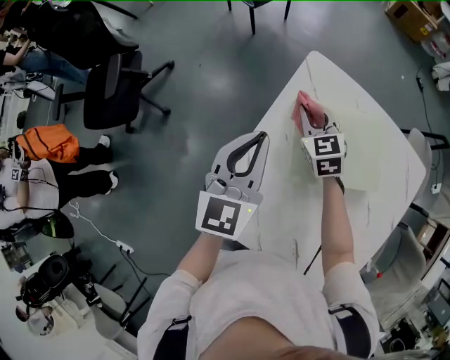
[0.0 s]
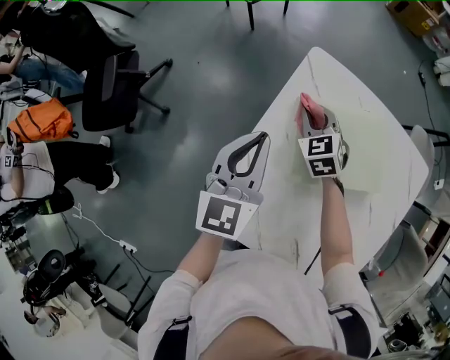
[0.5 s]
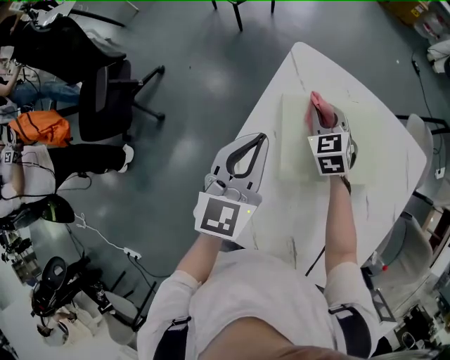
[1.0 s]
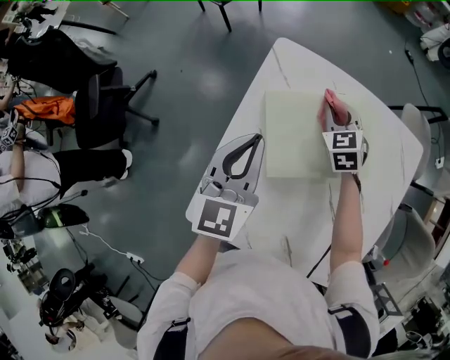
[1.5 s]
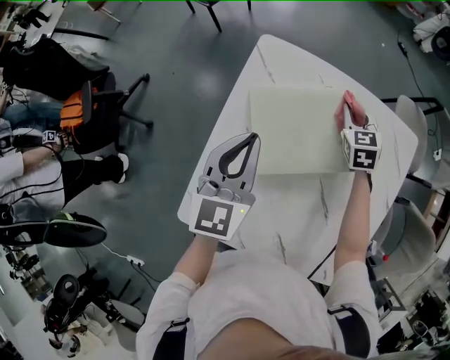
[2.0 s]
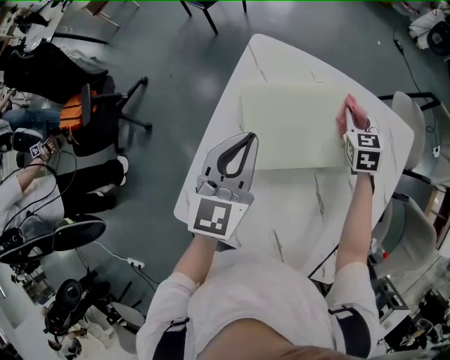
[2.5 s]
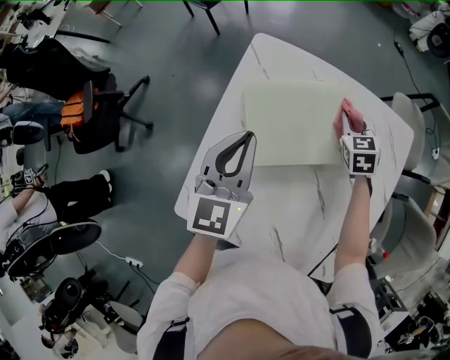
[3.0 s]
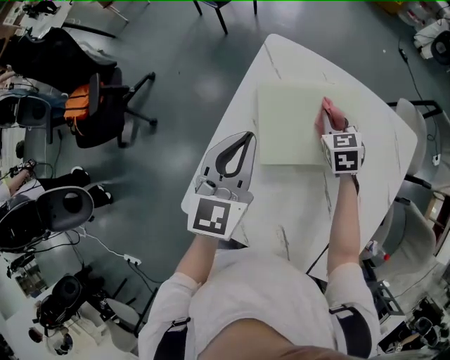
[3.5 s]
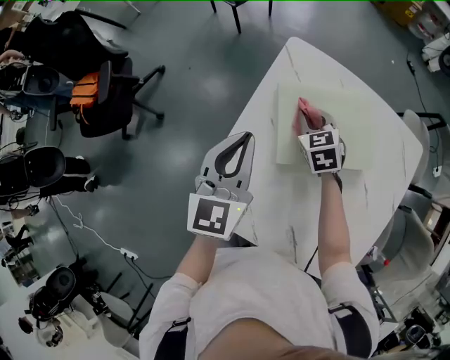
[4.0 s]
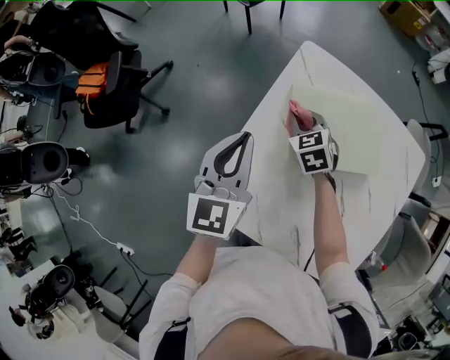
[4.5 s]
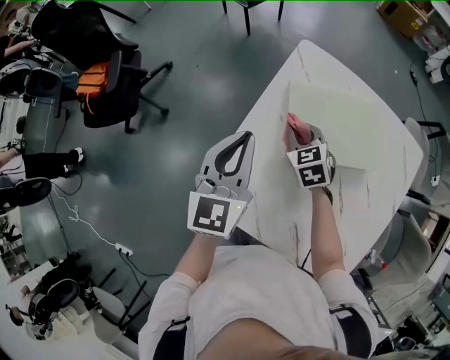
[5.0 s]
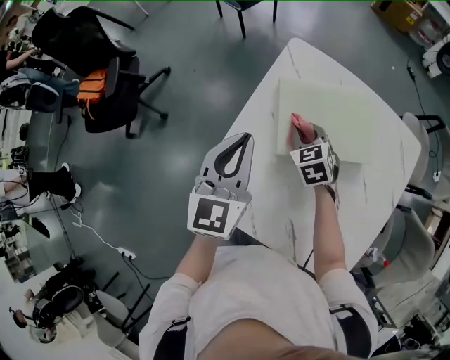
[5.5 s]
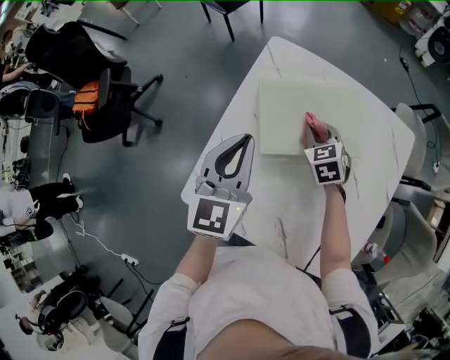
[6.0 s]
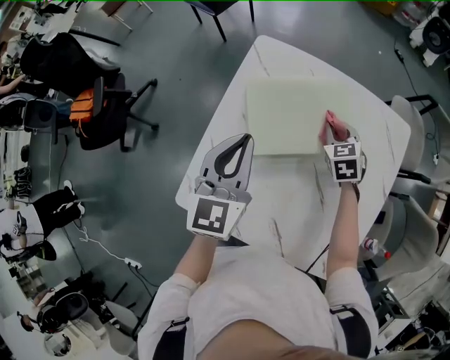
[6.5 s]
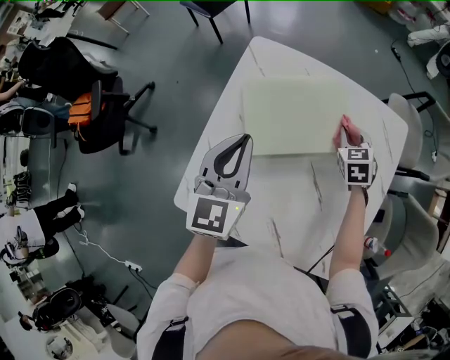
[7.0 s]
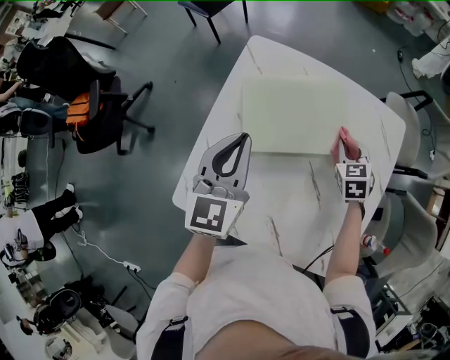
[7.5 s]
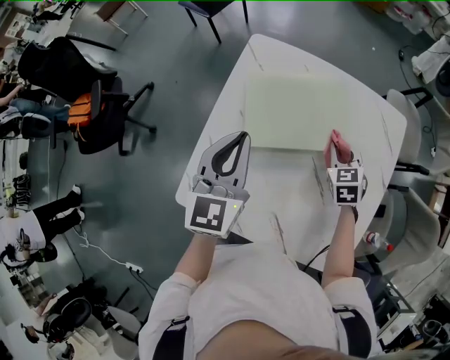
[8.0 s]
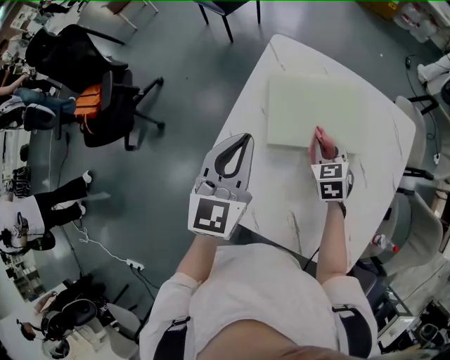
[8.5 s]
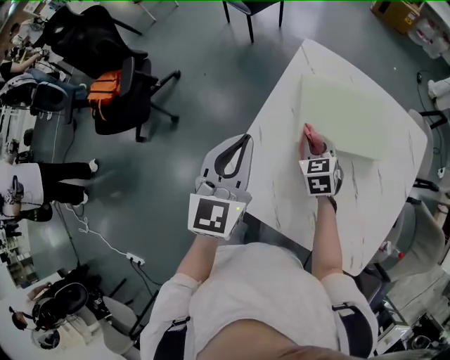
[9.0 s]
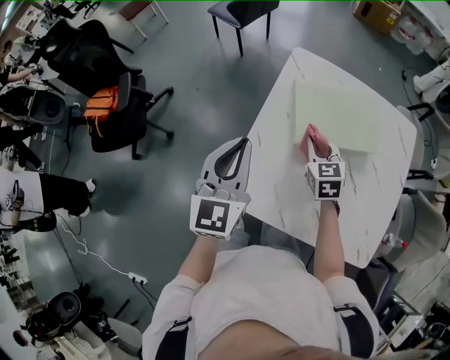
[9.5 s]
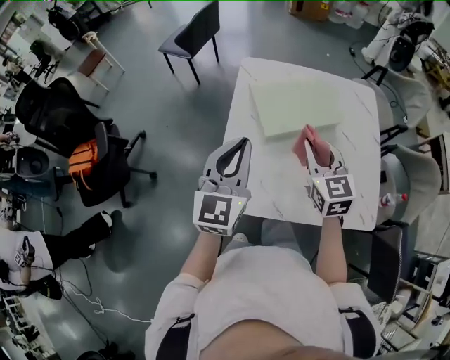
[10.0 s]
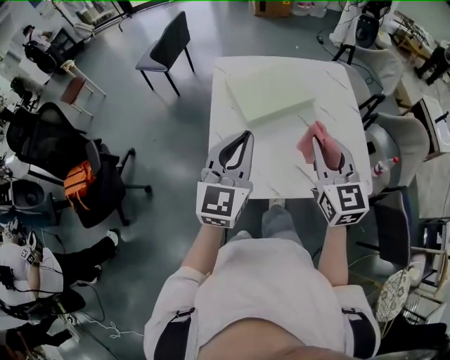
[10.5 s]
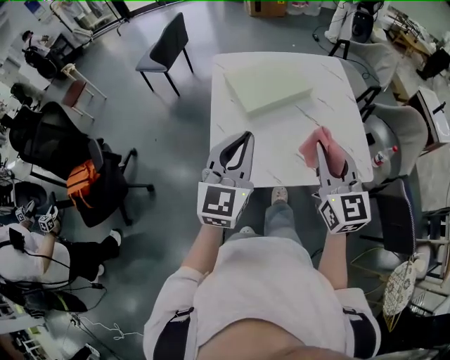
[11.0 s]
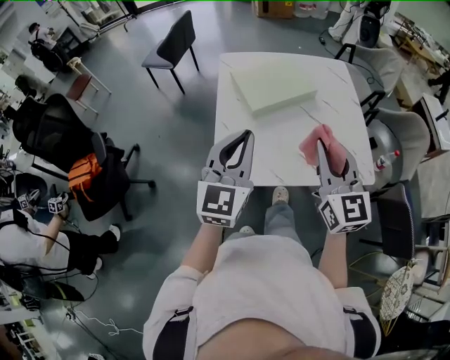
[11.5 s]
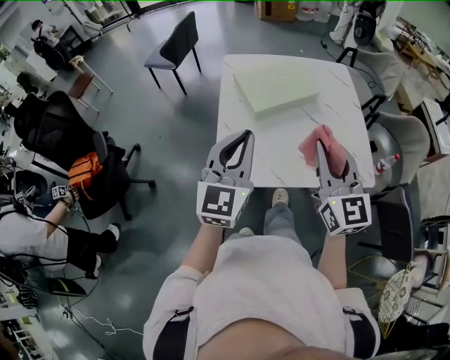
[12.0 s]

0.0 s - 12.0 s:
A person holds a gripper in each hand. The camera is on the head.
0.0 s - 2.0 s: The right gripper travels to the right by approximately 25 cm, and rotates about 20 degrees. Meanwhile the left gripper moves to the right, about 10 cm.
2.0 s - 4.0 s: The right gripper shifts approximately 20 cm to the left and backward. Meanwhile the left gripper moves to the left and backward, approximately 10 cm.
4.0 s - 6.0 s: The right gripper travels to the right and backward by some 10 cm. The left gripper goes roughly 5 cm to the right.
6.0 s - 8.0 s: The right gripper goes some 15 cm to the right and backward.
8.0 s - 10.0 s: The right gripper travels to the left, upward and backward by roughly 30 cm, and turns by approximately 30 degrees; the left gripper moves backward, to the left and upward, some 15 cm.
10.0 s - 12.0 s: The left gripper travels backward by roughly 10 cm. The right gripper heads backward and upward, covering about 20 cm, and changes its angle by some 20 degrees.

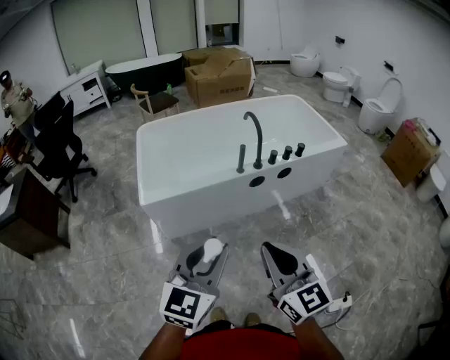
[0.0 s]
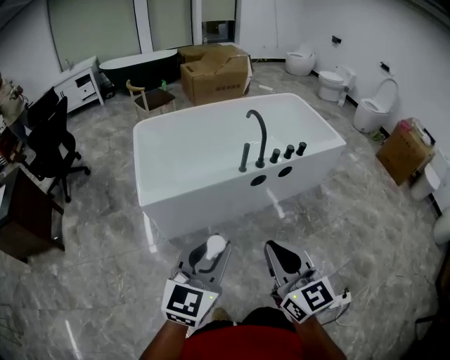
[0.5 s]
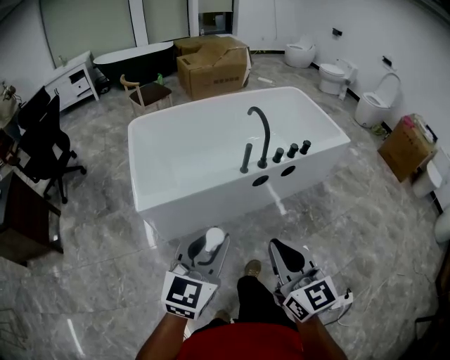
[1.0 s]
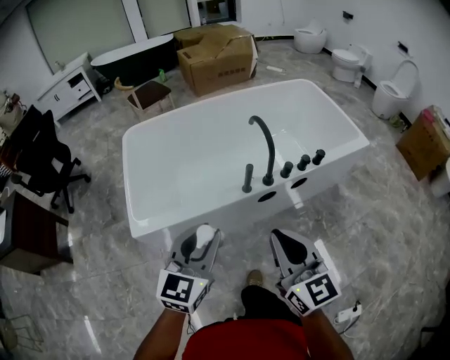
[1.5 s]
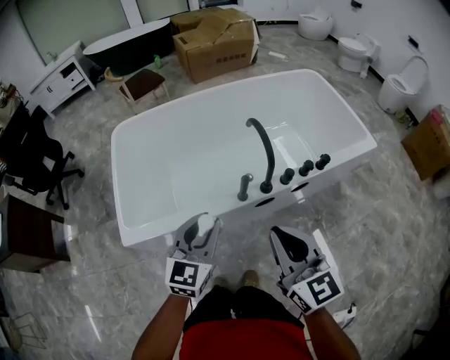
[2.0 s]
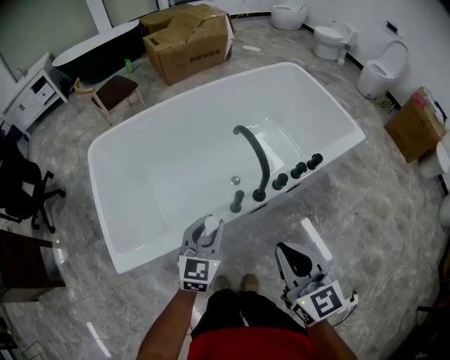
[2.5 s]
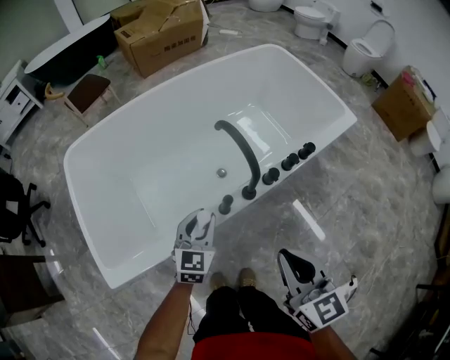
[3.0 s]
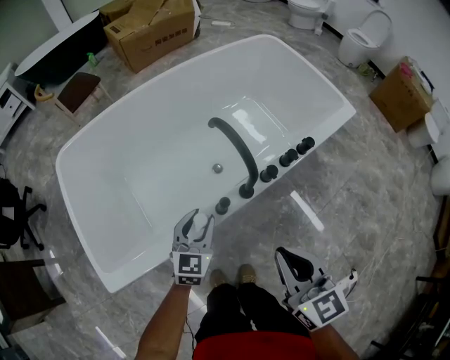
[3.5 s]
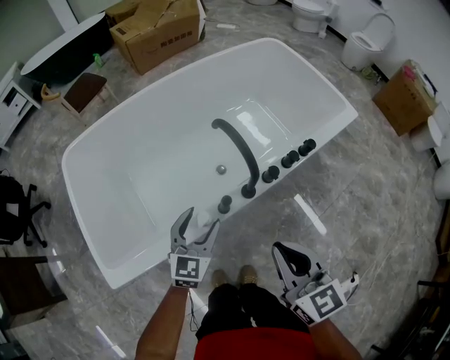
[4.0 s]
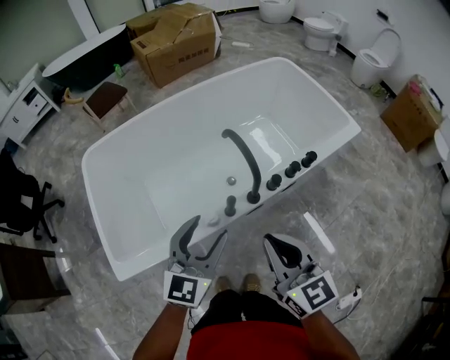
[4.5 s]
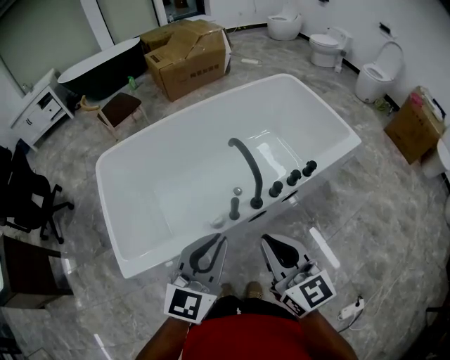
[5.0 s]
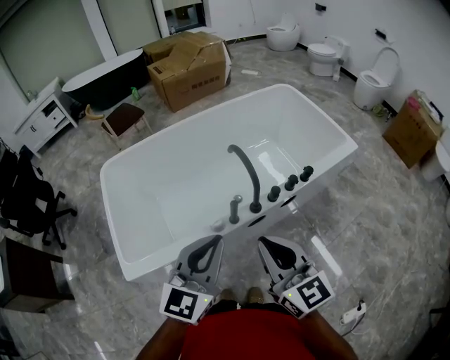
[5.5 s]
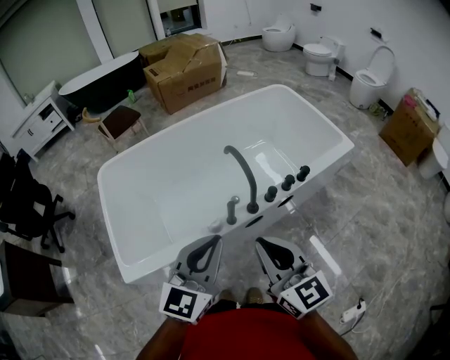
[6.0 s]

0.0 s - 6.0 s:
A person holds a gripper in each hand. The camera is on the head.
0.0 s - 2.0 s: Both grippers move forward, approximately 40 cm.
2.0 s - 4.0 s: The left gripper moves downward and forward, some 20 cm, and opens up; the right gripper moves downward and forward, about 10 cm.
4.0 s - 6.0 s: The left gripper travels upward and backward by approximately 30 cm, and closes; the right gripper shifts some 10 cm upward and backward.

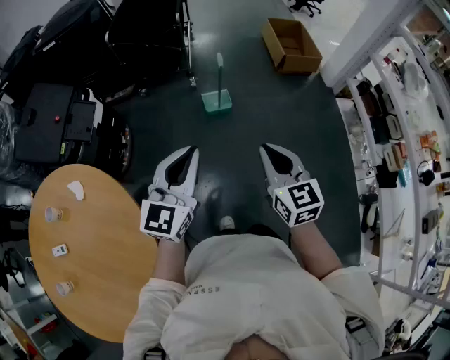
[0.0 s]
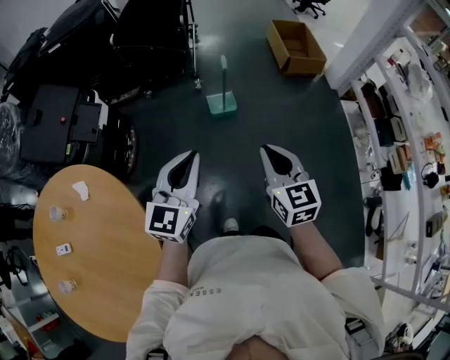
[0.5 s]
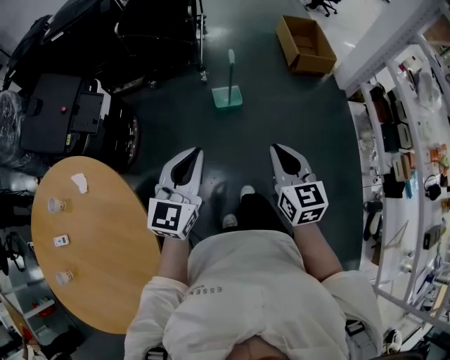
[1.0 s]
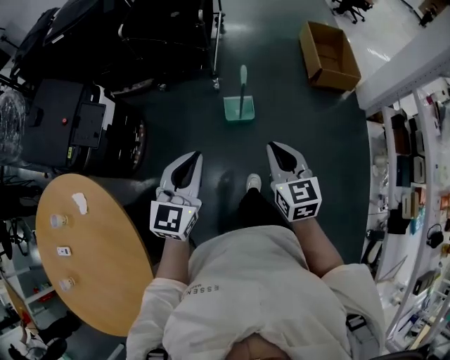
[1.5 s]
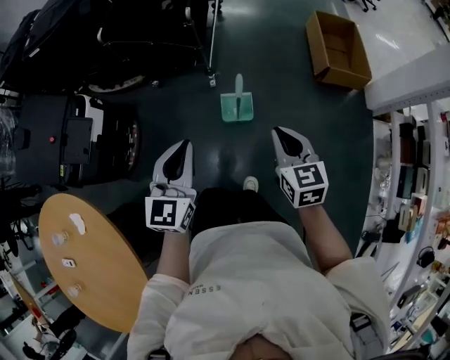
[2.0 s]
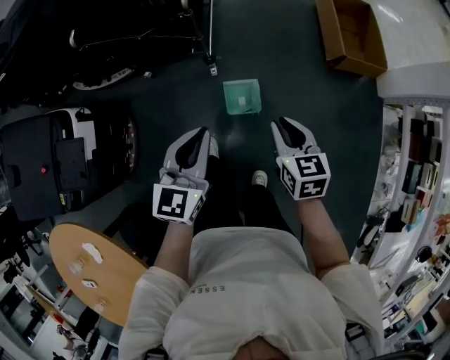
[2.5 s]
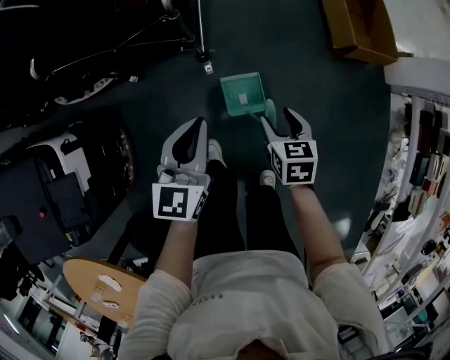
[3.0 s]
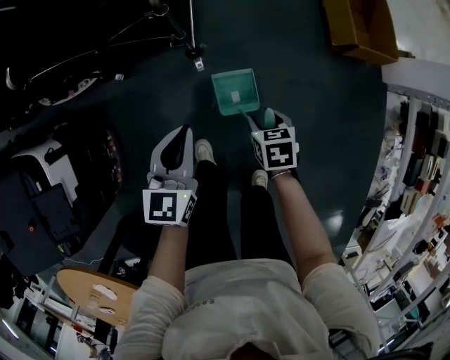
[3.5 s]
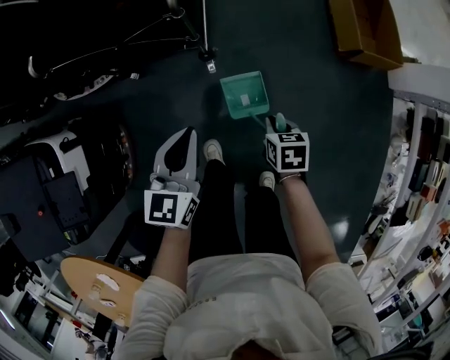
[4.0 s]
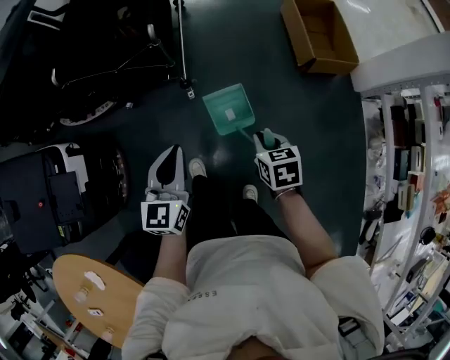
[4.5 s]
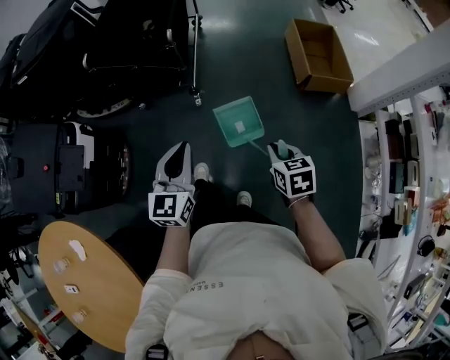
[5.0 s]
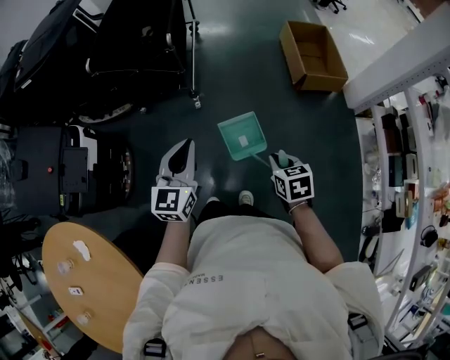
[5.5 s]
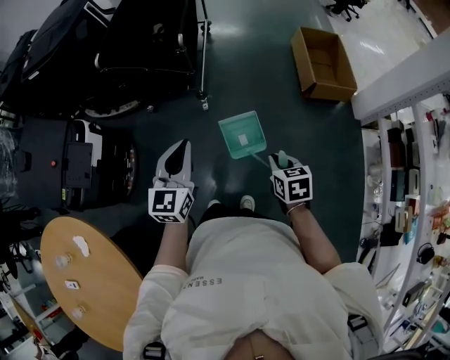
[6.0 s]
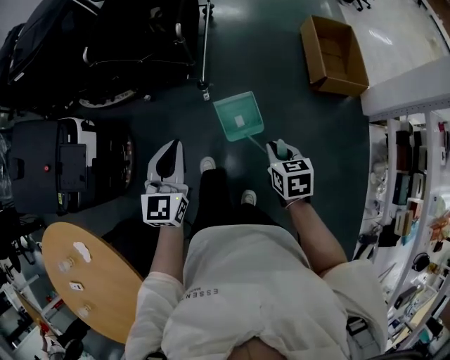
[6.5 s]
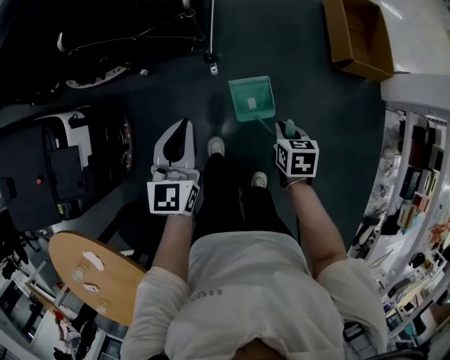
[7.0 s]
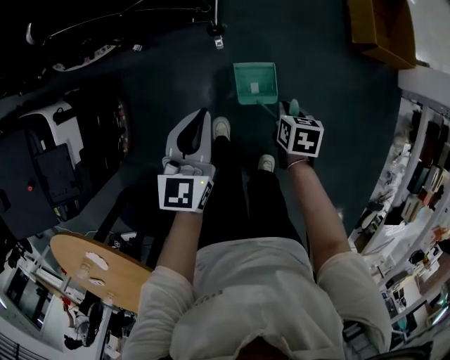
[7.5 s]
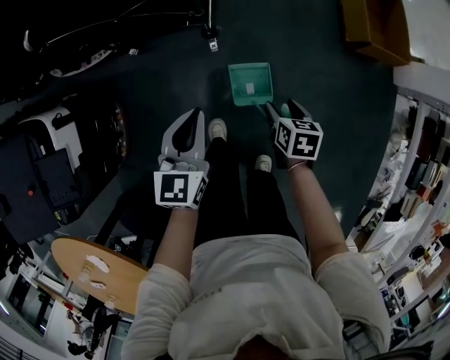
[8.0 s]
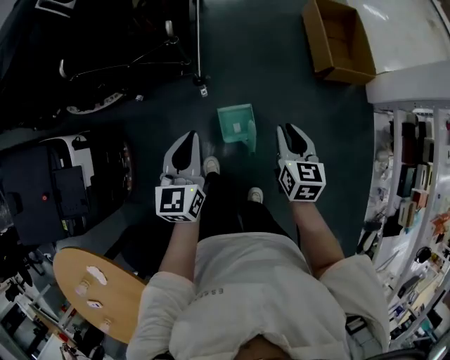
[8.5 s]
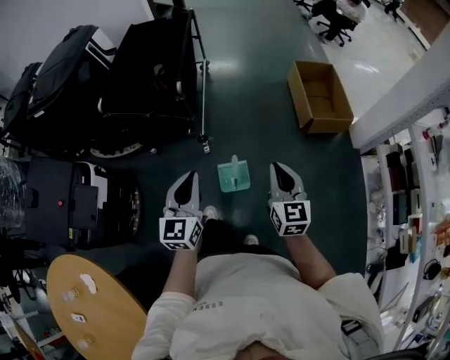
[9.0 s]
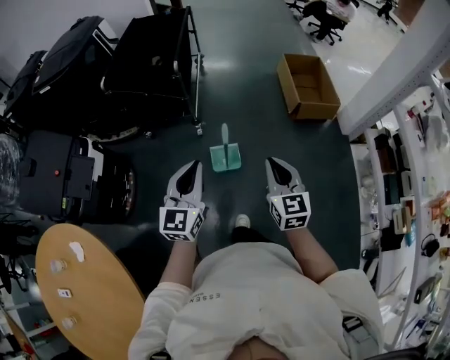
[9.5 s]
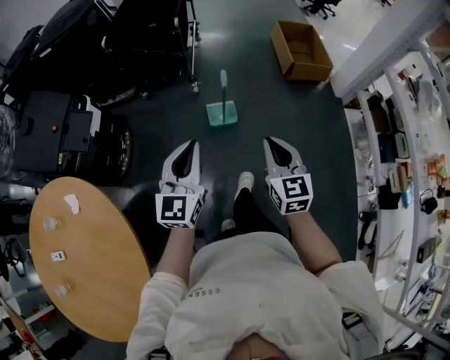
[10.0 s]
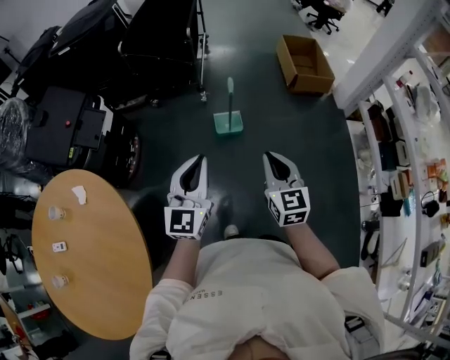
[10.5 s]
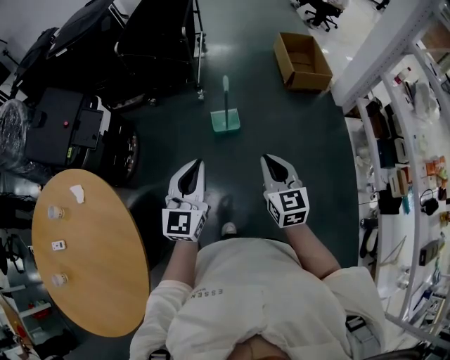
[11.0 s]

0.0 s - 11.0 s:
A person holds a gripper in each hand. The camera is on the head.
0.0 s - 2.0 s: The two grippers go some 40 cm forward.
2.0 s - 3.5 s: The left gripper heads forward and downward, covering approximately 40 cm; the right gripper goes approximately 40 cm downward and forward, tips its fingers downward by approximately 40 degrees, and opens up.
3.5 s - 5.5 s: The left gripper moves backward and upward, some 35 cm, while the right gripper heads backward, upward and to the right, covering roughly 40 cm, and closes.
5.5 s - 7.5 s: Both grippers move forward and downward, some 35 cm. The right gripper turns by approximately 20 degrees.
7.5 s - 9.0 s: The right gripper shifts about 35 cm upward, angles its fingers upward, by roughly 50 degrees, and opens and closes again; the left gripper goes roughly 30 cm upward, backward and to the right.
9.0 s - 11.0 s: The pair of grippers is taken backward, about 40 cm.
